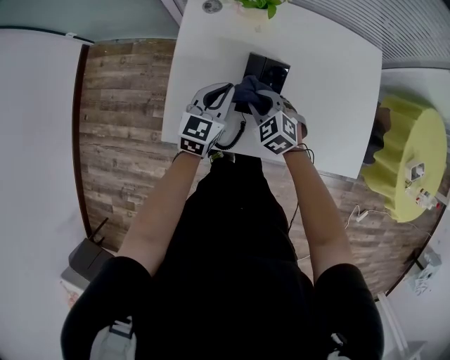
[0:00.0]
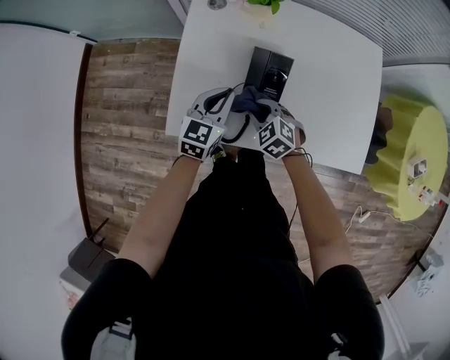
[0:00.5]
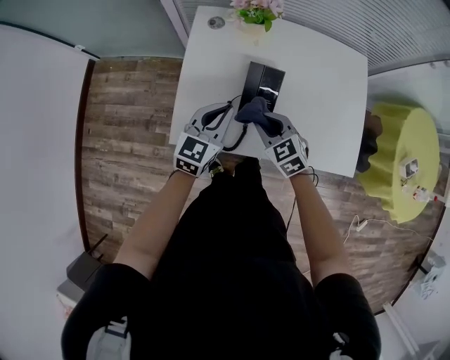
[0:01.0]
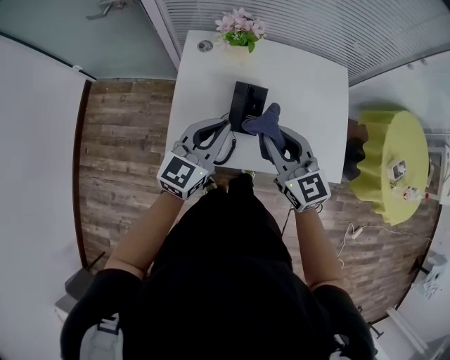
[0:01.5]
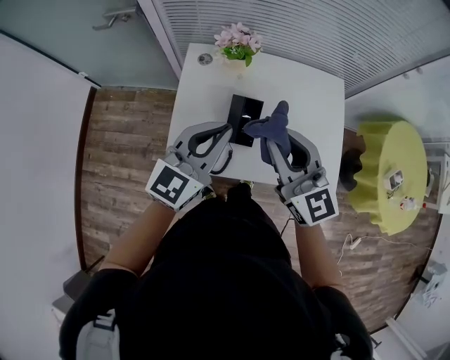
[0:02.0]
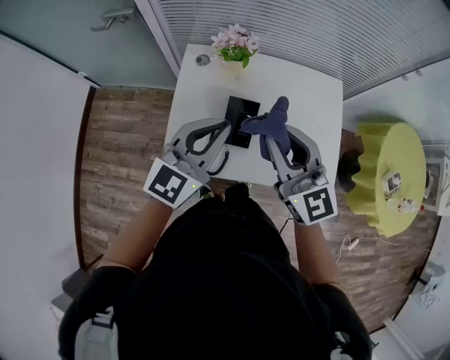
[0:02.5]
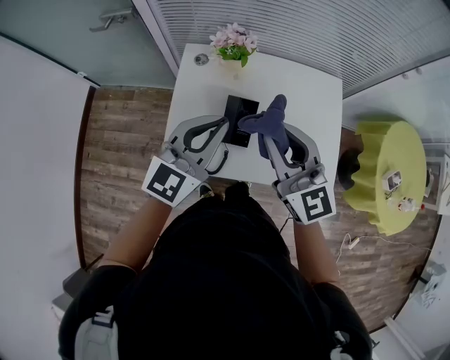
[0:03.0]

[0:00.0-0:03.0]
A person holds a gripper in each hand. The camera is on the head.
0:00.0 to 0:01.5: The left gripper moves upward and backward, about 20 cm, while the right gripper shifts about 25 cm upward, and points its fingers roughly 40 degrees further upward.
0:01.5 to 0:03.0: Both grippers move upward, roughly 10 cm.

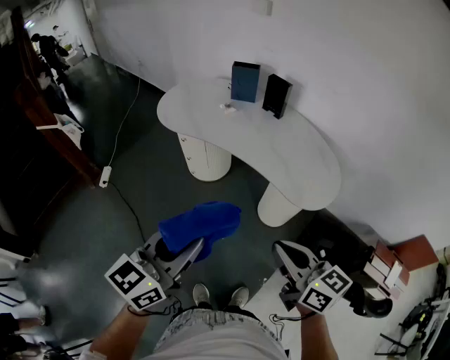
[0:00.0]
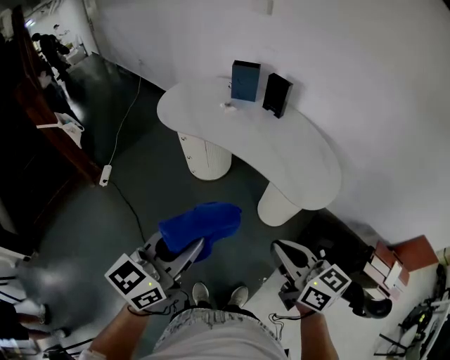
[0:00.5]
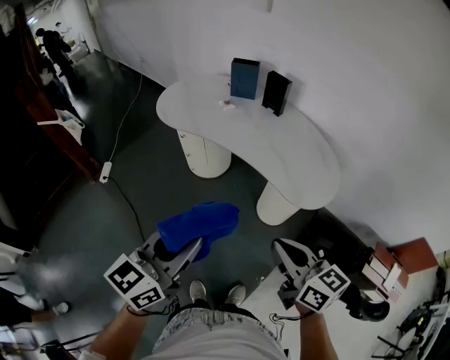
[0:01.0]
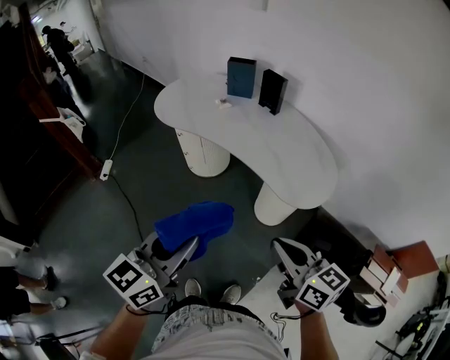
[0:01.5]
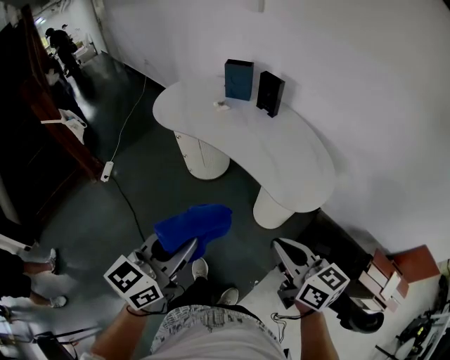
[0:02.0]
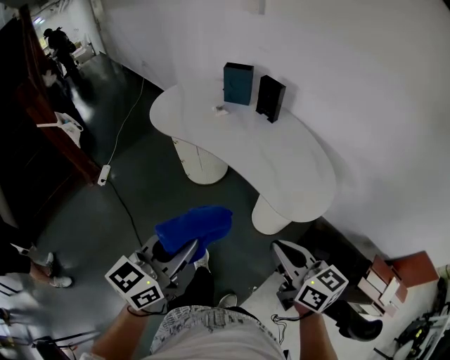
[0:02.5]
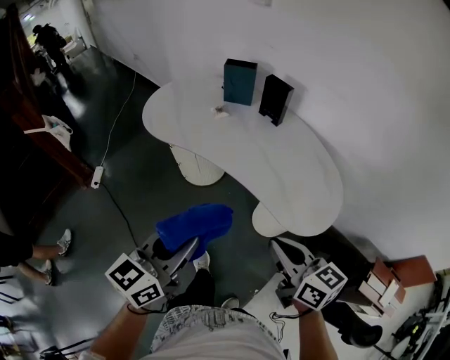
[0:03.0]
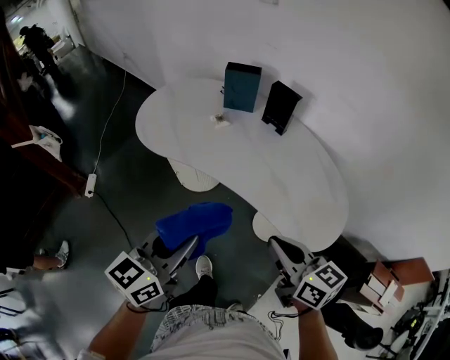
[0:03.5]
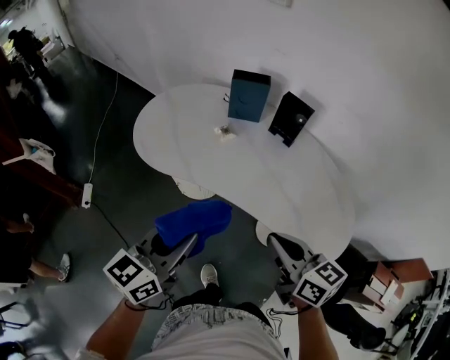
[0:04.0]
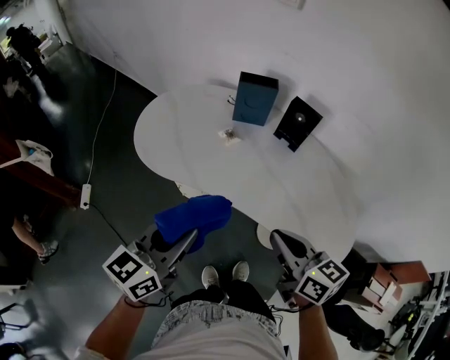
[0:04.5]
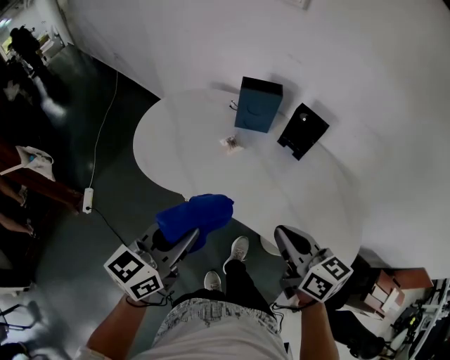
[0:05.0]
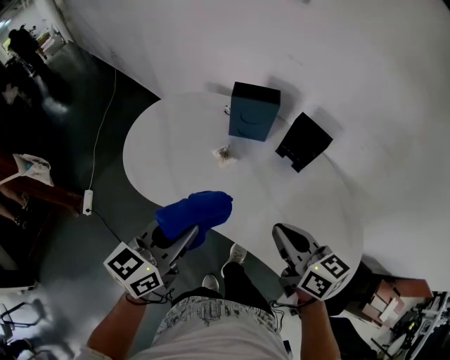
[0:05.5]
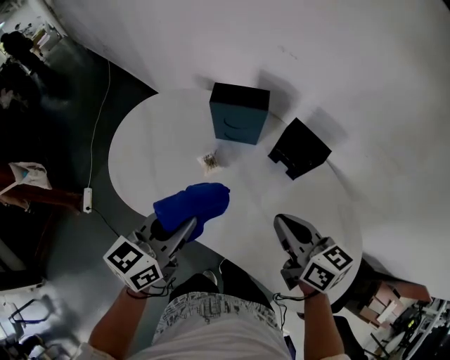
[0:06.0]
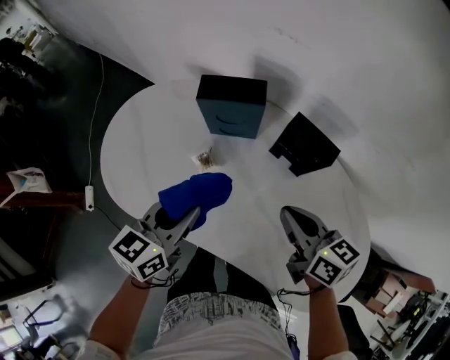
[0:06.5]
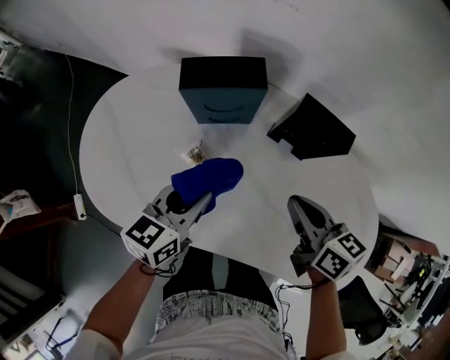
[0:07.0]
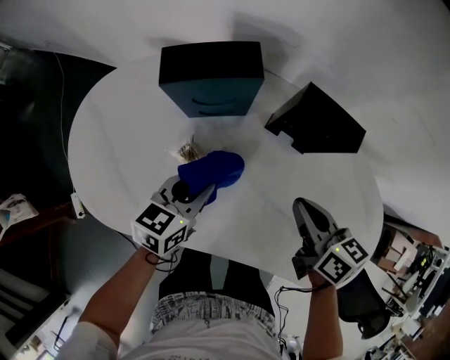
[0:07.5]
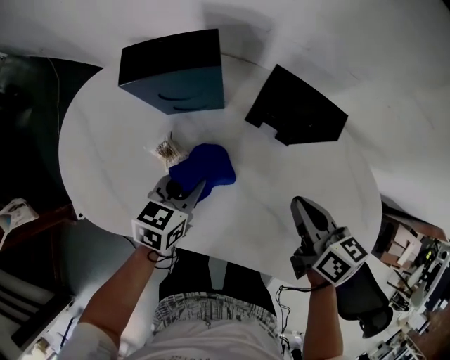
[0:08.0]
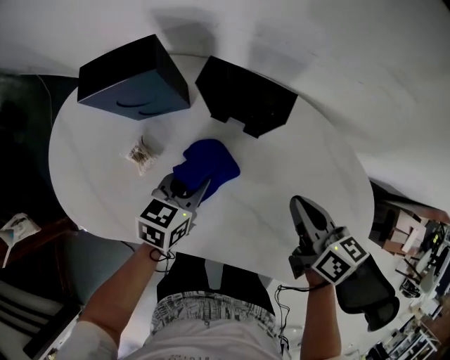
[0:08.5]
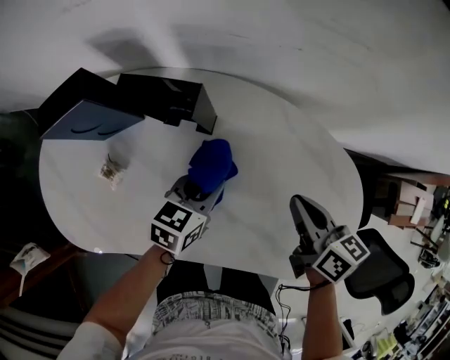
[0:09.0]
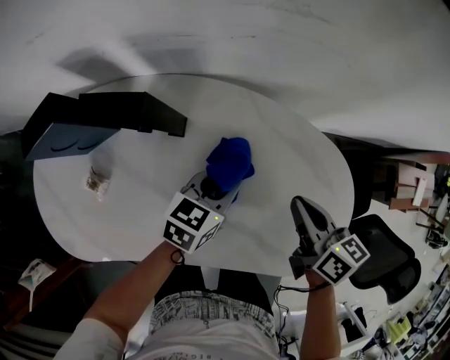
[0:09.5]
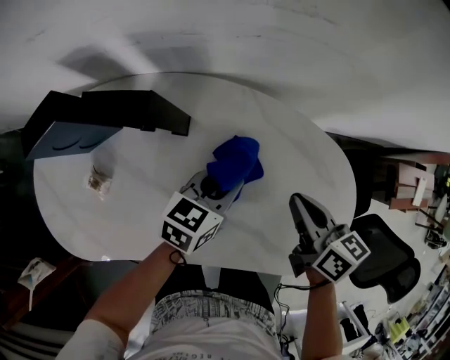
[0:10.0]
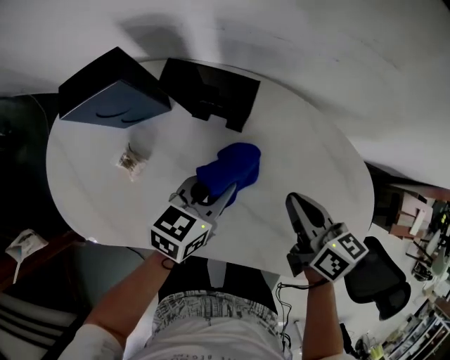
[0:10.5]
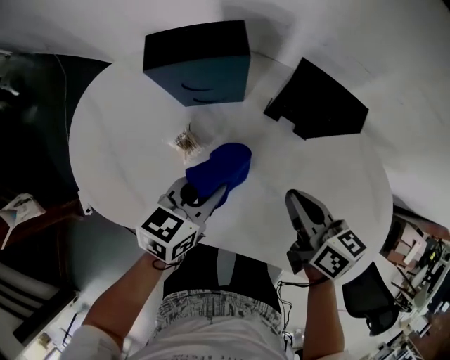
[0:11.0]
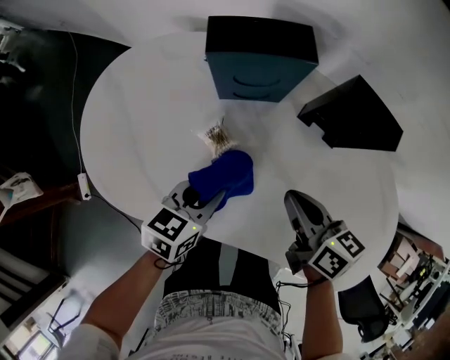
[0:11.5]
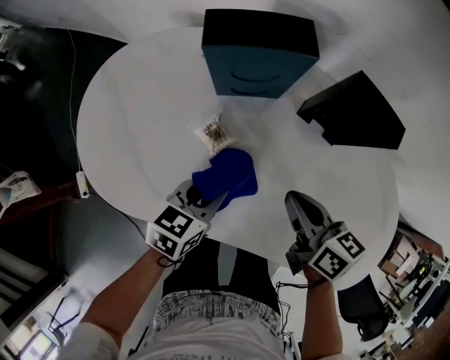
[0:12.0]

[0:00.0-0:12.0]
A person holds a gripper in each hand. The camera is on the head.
0:00.0 to 0:02.0: The two grippers go roughly 10 cm to the right.
0:02.0 to 0:04.0: The left gripper moves forward, roughly 30 cm. Meanwhile the right gripper travels forward and to the left by some 30 cm.
0:04.0 to 0:06.0: Both grippers travel together forward, roughly 25 cm.
0:06.0 to 0:08.0: The left gripper shifts roughly 25 cm downward and forward, and turns by approximately 30 degrees. The right gripper moves downward and to the right, approximately 15 cm, and rotates approximately 30 degrees.
0:08.0 to 0:10.0: The right gripper moves roughly 20 cm, and swivels roughly 20 degrees. Meanwhile the left gripper moves approximately 30 cm, and rotates roughly 30 degrees.
0:10.0 to 0:12.0: The left gripper ends up about 35 cm from where it was, and changes its angle by about 30 degrees; the right gripper shifts by about 30 cm, and swivels approximately 30 degrees.

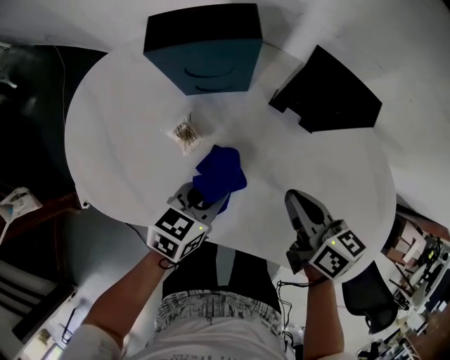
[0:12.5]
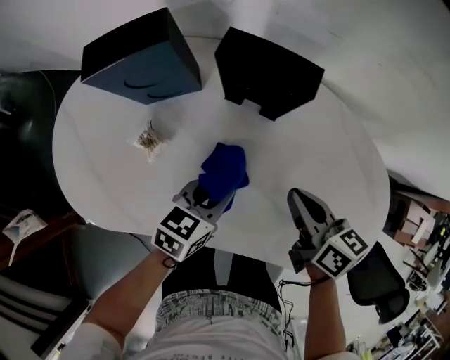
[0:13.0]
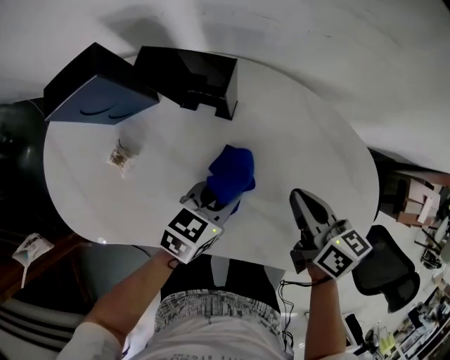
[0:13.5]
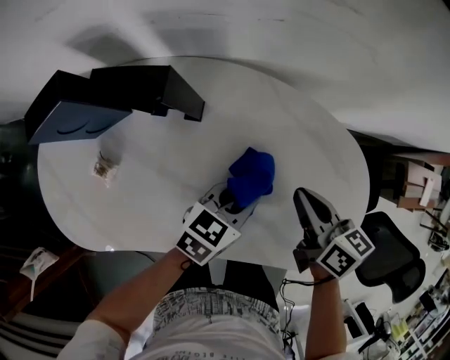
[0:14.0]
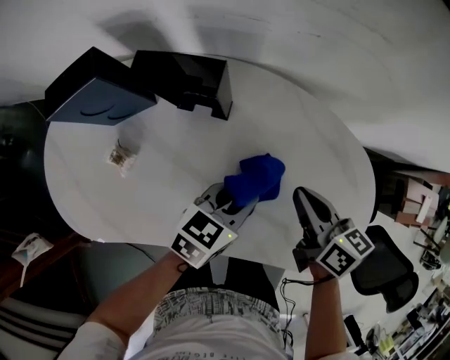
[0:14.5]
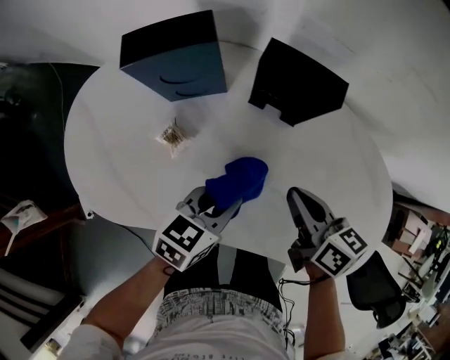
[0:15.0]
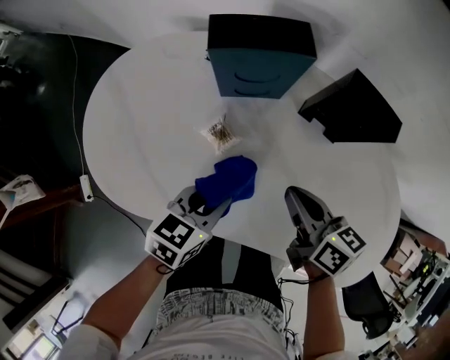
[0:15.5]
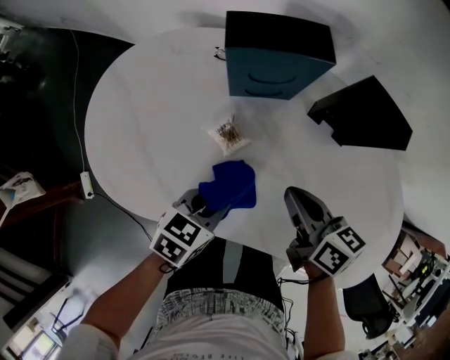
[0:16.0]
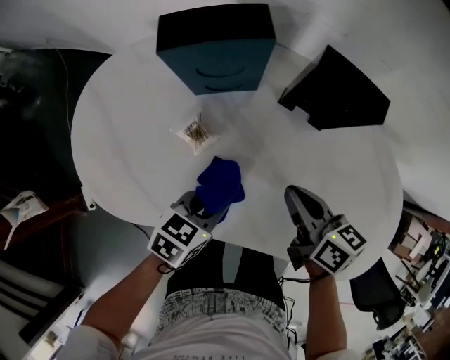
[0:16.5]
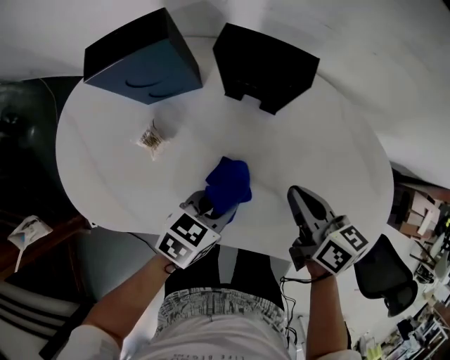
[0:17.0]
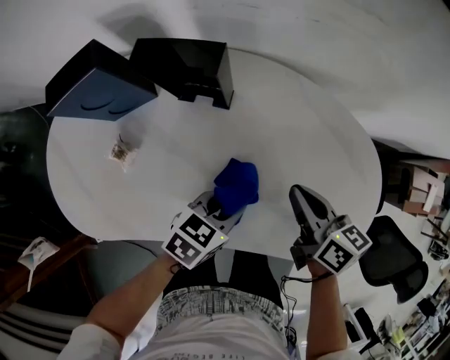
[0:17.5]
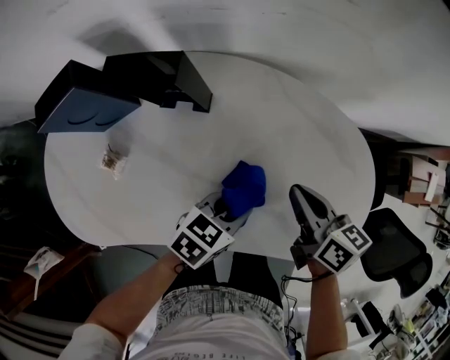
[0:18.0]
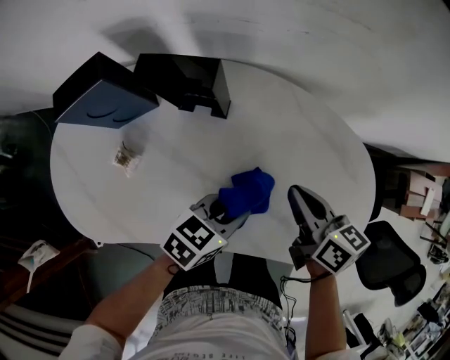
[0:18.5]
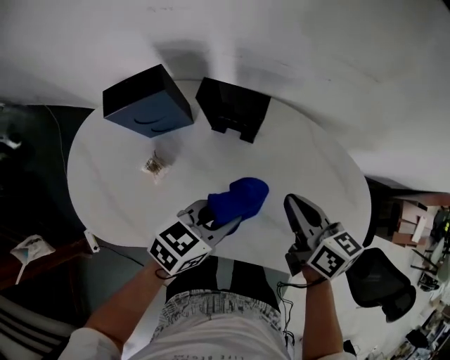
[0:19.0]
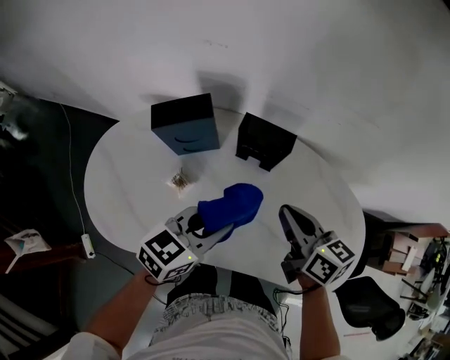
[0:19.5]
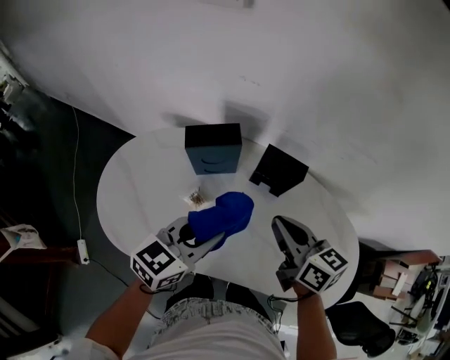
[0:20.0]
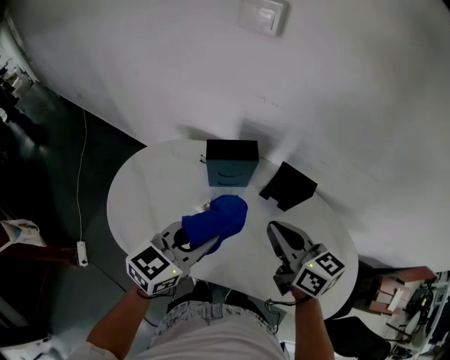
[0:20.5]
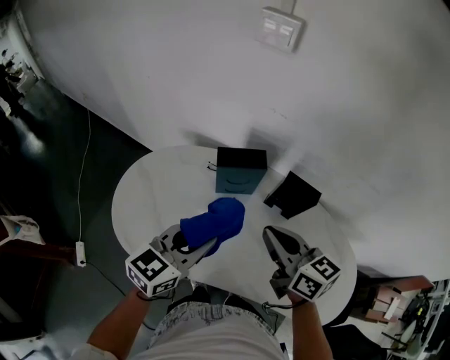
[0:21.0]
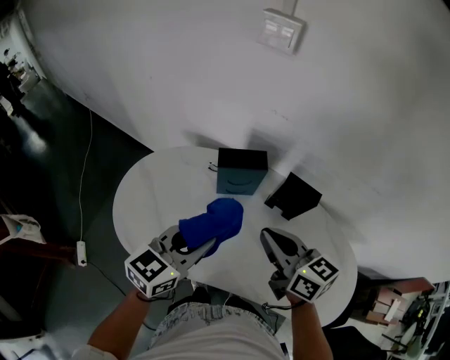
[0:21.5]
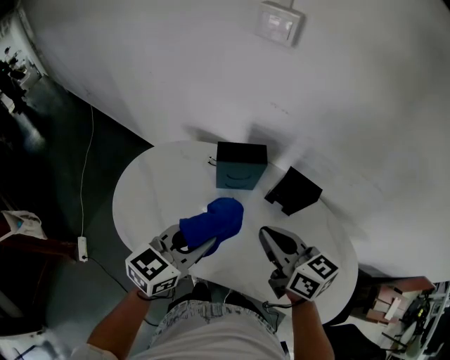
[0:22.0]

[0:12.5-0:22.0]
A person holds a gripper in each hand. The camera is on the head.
0:12.5 to 0:14.5: Both grippers move to the right, roughly 20 cm. The left gripper swivels approximately 20 degrees.
0:14.5 to 0:16.5: Both grippers travel together to the left, about 25 cm.
0:16.5 to 0:18.0: Both grippers move to the right, roughly 25 cm. The left gripper turns by some 20 degrees. The right gripper turns by roughly 20 degrees.
0:18.0 to 0:20.0: Both grippers move to the left and upward, about 35 cm. The left gripper rotates roughly 40 degrees. The right gripper swivels approximately 30 degrees.
0:20.0 to 0:22.0: The two grippers go roughly 10 cm to the left.

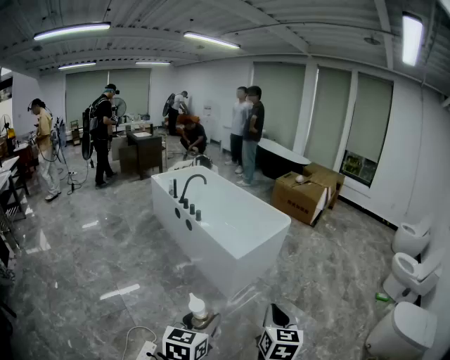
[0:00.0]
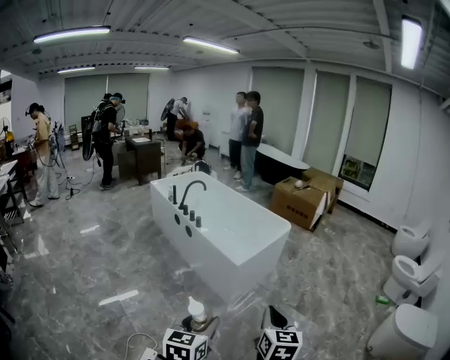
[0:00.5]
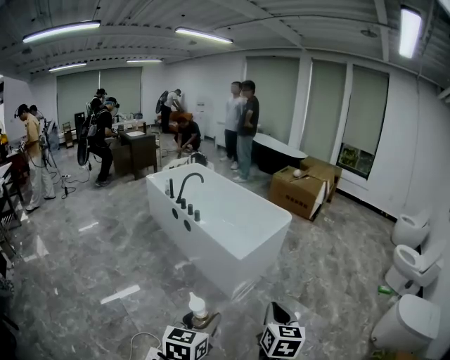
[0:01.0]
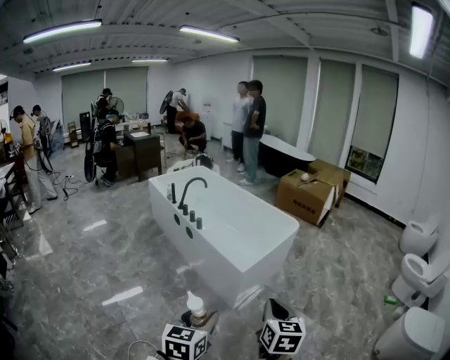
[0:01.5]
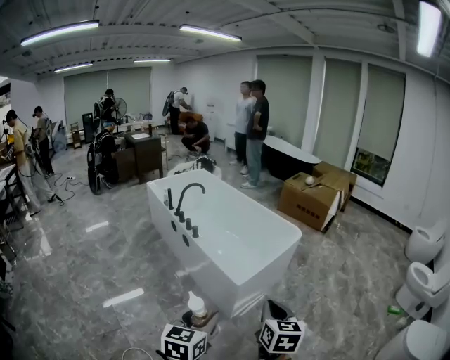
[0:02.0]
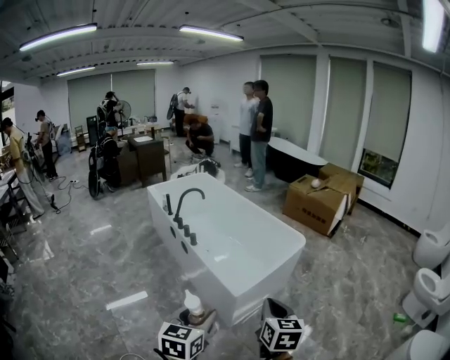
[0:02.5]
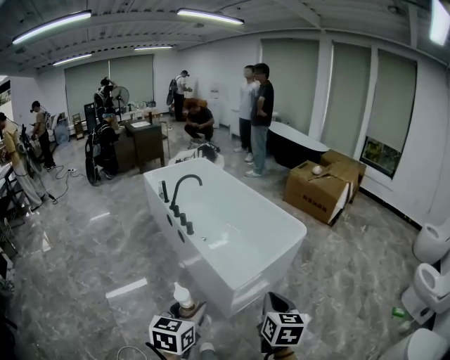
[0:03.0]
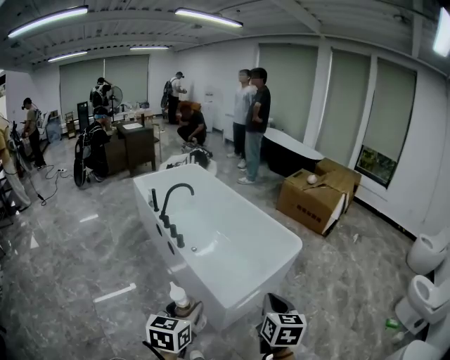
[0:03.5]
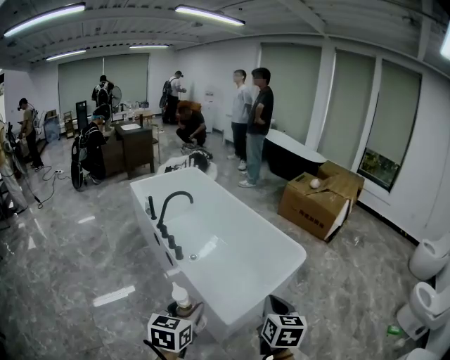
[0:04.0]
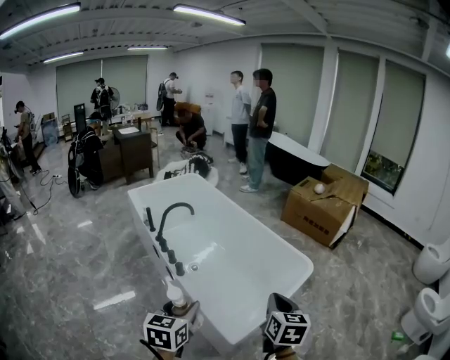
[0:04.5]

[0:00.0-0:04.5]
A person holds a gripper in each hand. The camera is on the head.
0:00.0 to 0:02.0: Both grippers move forward, roughly 25 cm.
0:02.0 to 0:04.5: Both grippers are carried forward, about 40 cm.
